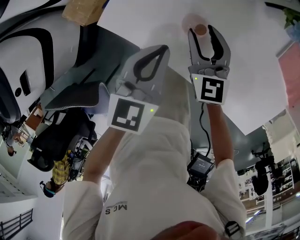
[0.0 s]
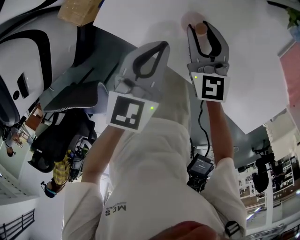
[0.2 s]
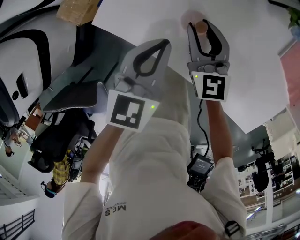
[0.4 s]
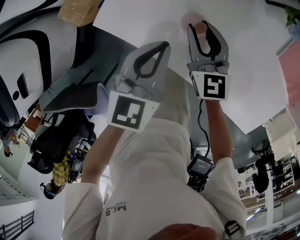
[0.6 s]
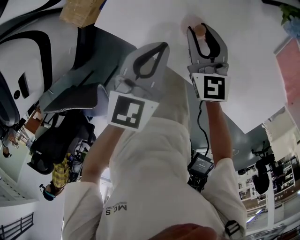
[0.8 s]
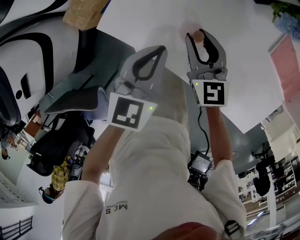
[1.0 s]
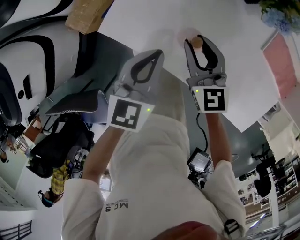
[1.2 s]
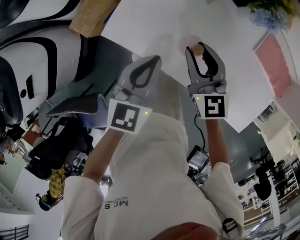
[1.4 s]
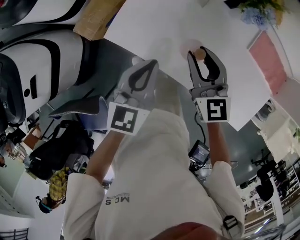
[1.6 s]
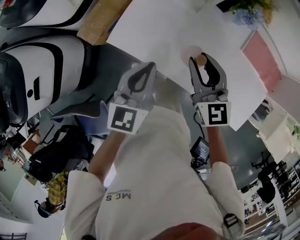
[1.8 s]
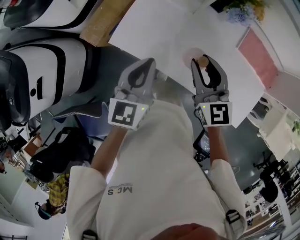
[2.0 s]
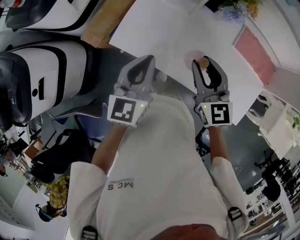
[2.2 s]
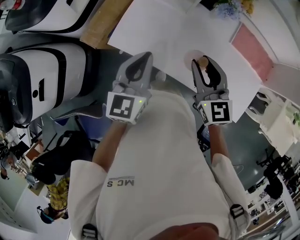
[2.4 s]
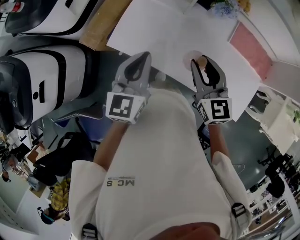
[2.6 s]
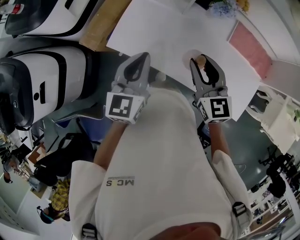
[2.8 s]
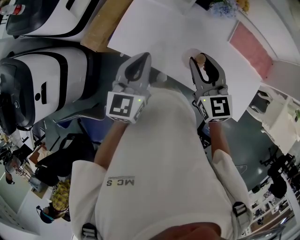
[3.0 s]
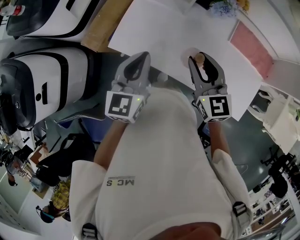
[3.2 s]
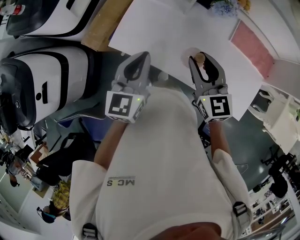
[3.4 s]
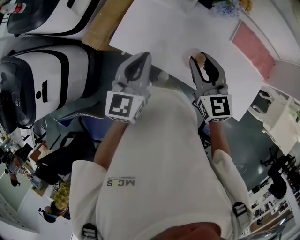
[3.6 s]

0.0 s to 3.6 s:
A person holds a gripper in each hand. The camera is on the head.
0.0 to 1.8 s: Both grippers move upward and backward, some 25 cm.
1.8 to 3.6 s: The right gripper shifts some 10 cm upward and backward. Meanwhile the left gripper heads upward, covering about 5 cm.

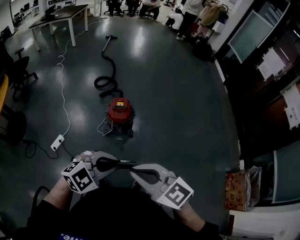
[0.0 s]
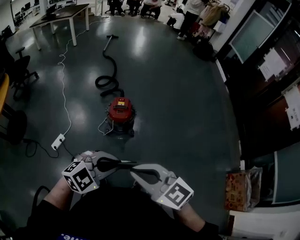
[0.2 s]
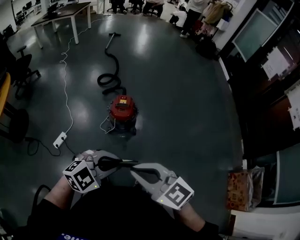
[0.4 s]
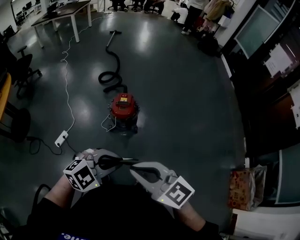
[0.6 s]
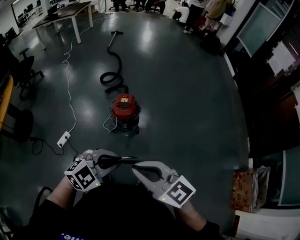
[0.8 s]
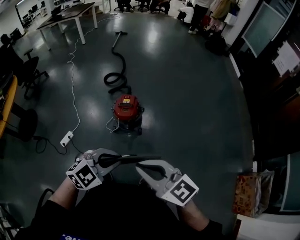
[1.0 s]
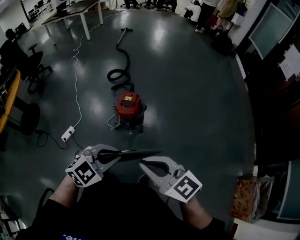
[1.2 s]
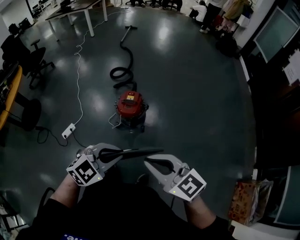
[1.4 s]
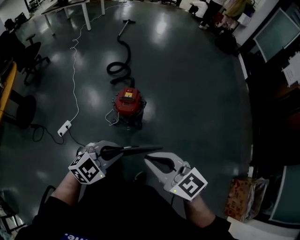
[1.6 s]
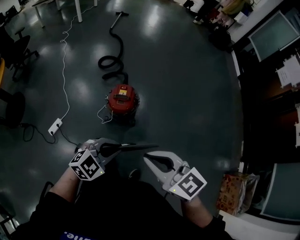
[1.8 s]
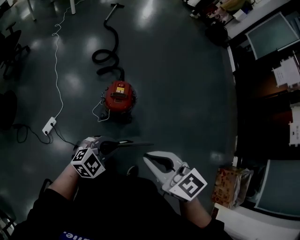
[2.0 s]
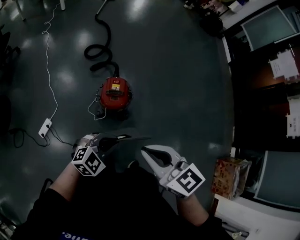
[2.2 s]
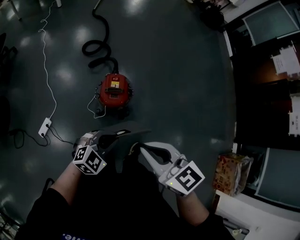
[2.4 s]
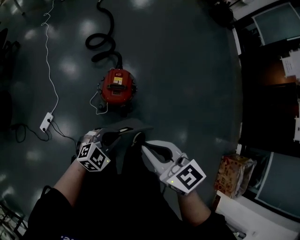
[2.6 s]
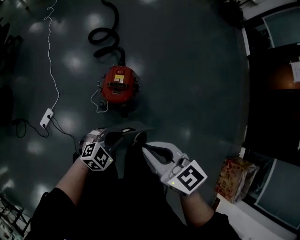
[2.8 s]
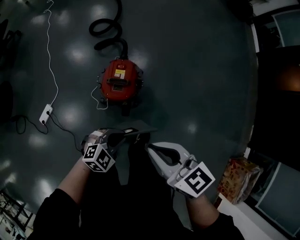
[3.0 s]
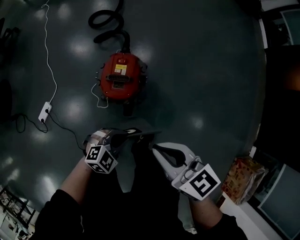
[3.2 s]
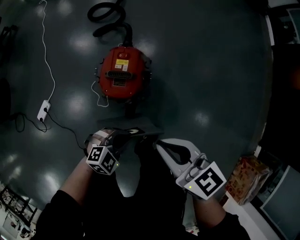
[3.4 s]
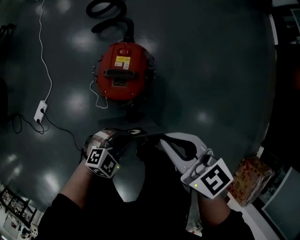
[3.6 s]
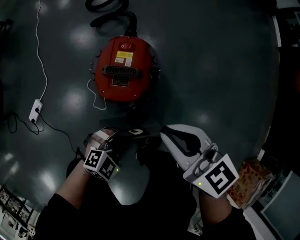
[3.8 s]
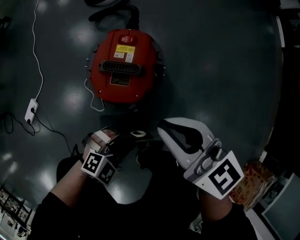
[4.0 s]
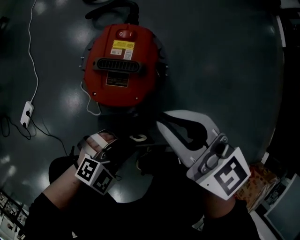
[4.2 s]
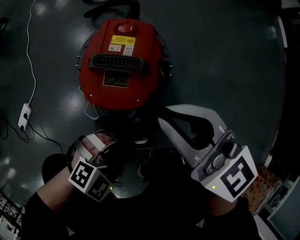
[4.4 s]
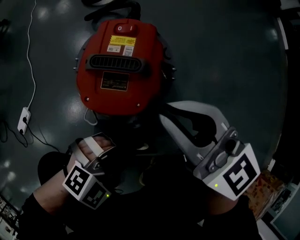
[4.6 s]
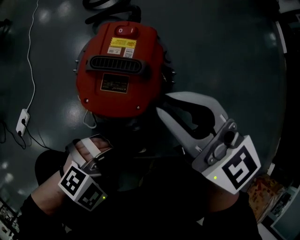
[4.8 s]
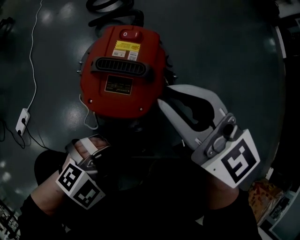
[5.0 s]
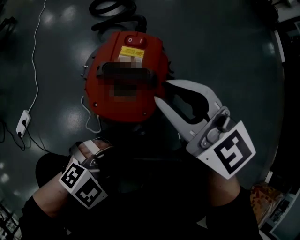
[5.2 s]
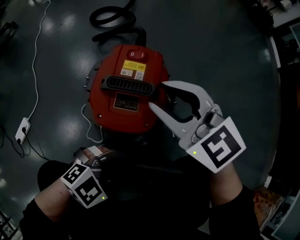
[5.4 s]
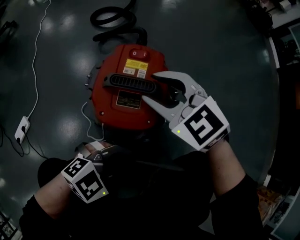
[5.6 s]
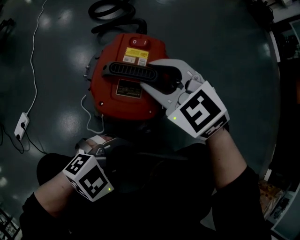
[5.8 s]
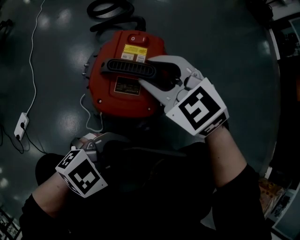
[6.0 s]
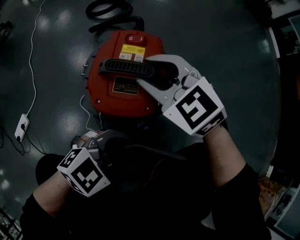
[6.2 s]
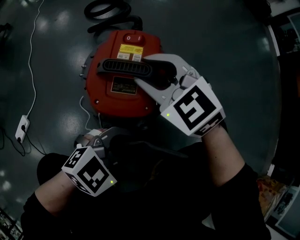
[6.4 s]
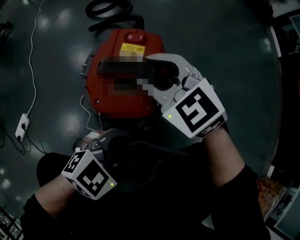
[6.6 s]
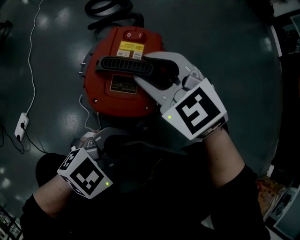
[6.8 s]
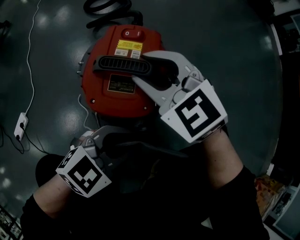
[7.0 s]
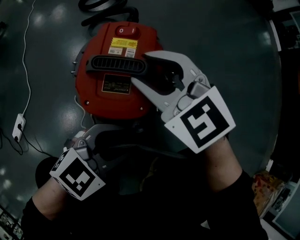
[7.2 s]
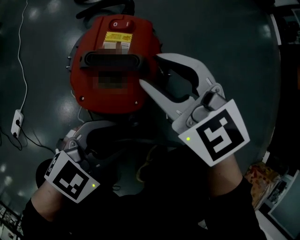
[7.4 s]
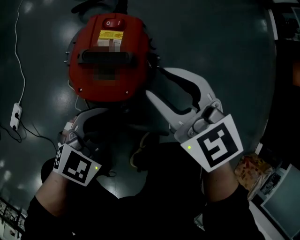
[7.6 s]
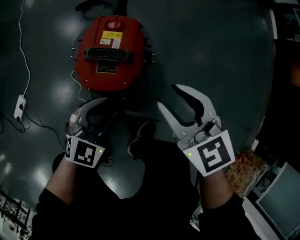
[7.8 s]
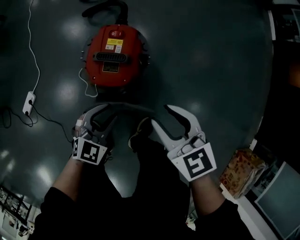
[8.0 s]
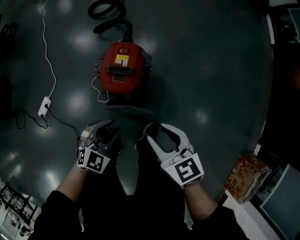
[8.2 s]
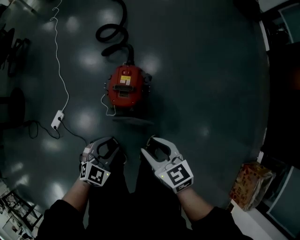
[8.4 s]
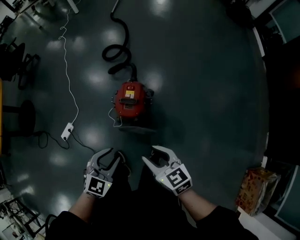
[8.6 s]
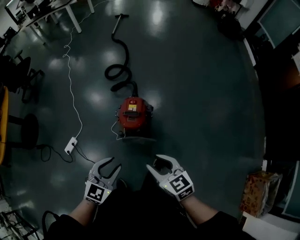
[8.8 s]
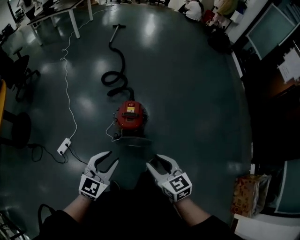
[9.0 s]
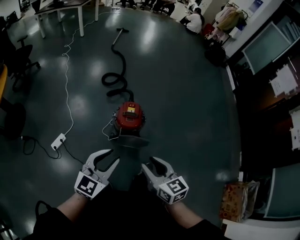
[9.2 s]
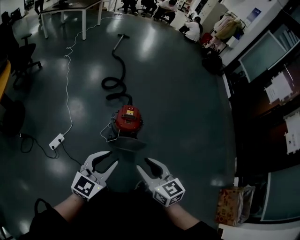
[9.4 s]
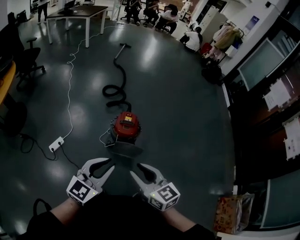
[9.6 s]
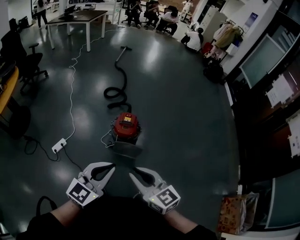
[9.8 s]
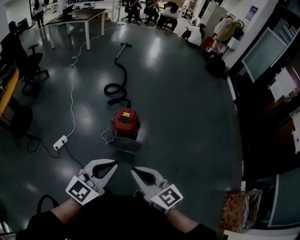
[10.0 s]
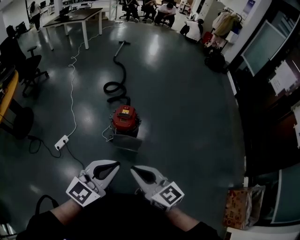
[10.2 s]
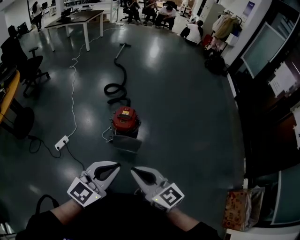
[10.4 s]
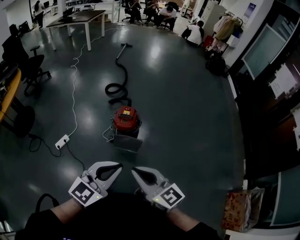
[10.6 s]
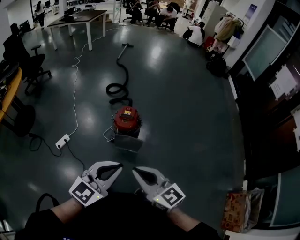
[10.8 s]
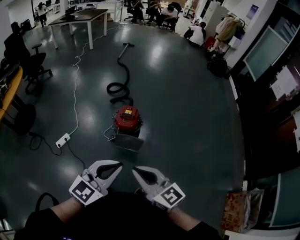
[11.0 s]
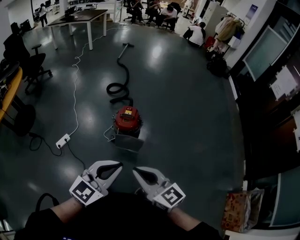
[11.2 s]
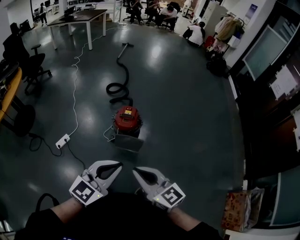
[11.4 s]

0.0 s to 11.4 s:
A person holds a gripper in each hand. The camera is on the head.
0.0 to 1.4 s: The right gripper changes place by roughly 15 cm, while the left gripper changes place by some 10 cm.
1.4 to 2.8 s: The left gripper is displaced downward and forward by about 30 cm. The right gripper moves forward and downward, about 25 cm, and rotates some 20 degrees.
2.8 to 4.2 s: Both grippers move downward, about 30 cm.
4.2 to 5.6 s: The right gripper goes some 15 cm downward, changes its angle by about 40 degrees, and opens.
5.6 to 7.2 s: The left gripper opens its fingers.
7.2 to 8.6 s: The left gripper is displaced upward by approximately 40 cm, and turns by some 30 degrees. Meanwhile the right gripper heads upward and backward, covering roughly 40 cm, and rotates around the line of its fingers by some 40 degrees, clockwise from behind.
8.6 to 10.0 s: The right gripper heads backward and upward, covering roughly 30 cm, swivels approximately 20 degrees, and closes; the left gripper moves upward and backward, some 35 cm, rotates some 30 degrees, and closes its fingers.
10.0 to 11.4 s: The grippers move only a little.

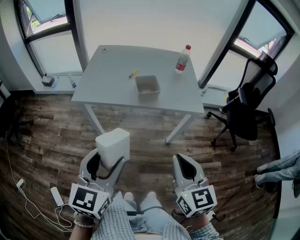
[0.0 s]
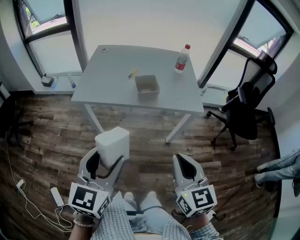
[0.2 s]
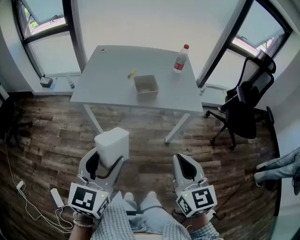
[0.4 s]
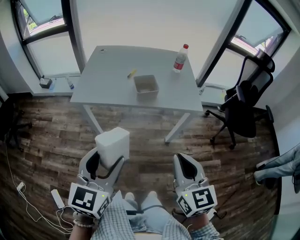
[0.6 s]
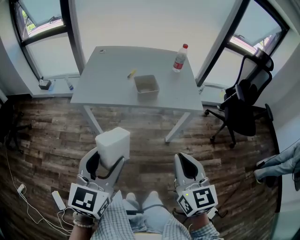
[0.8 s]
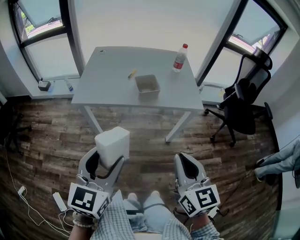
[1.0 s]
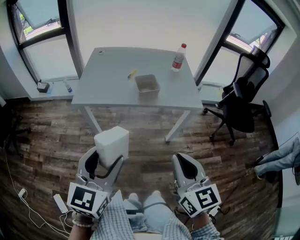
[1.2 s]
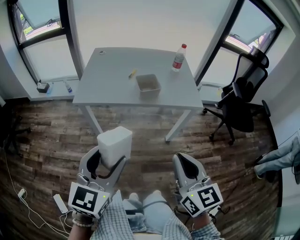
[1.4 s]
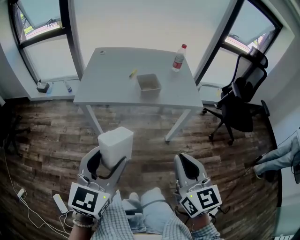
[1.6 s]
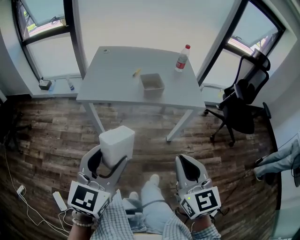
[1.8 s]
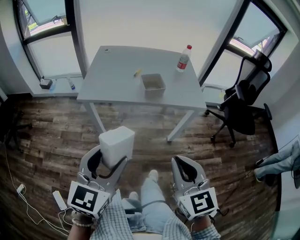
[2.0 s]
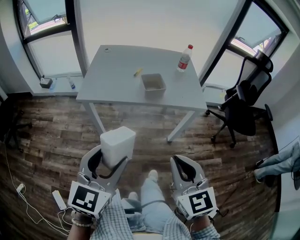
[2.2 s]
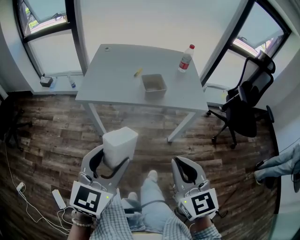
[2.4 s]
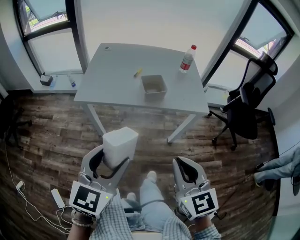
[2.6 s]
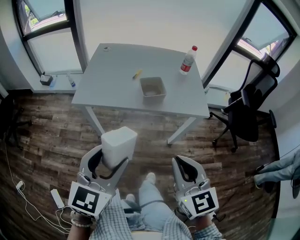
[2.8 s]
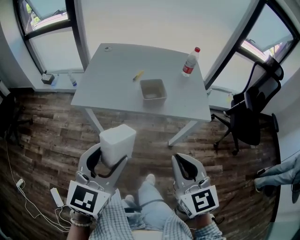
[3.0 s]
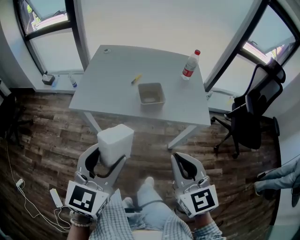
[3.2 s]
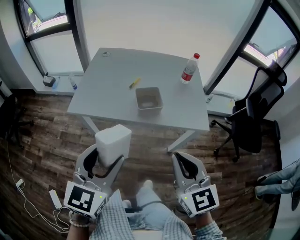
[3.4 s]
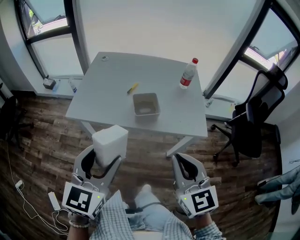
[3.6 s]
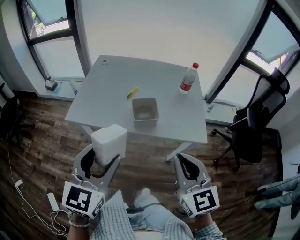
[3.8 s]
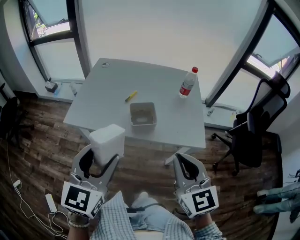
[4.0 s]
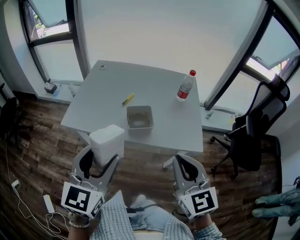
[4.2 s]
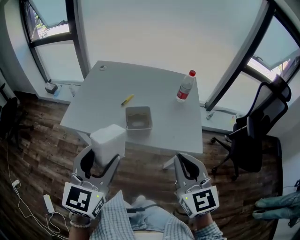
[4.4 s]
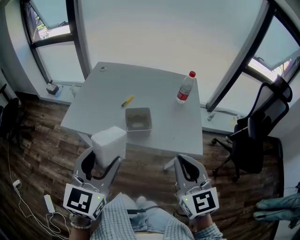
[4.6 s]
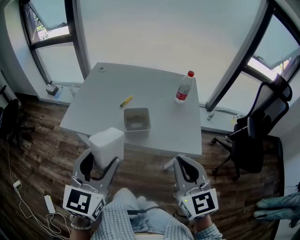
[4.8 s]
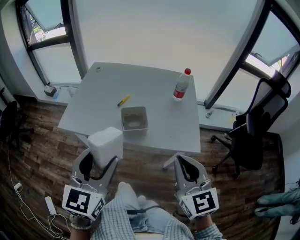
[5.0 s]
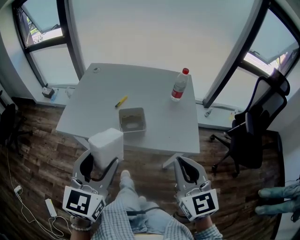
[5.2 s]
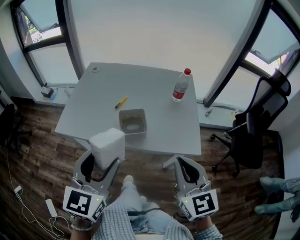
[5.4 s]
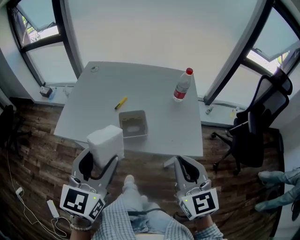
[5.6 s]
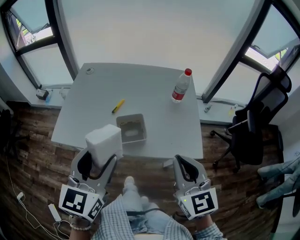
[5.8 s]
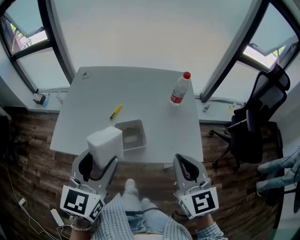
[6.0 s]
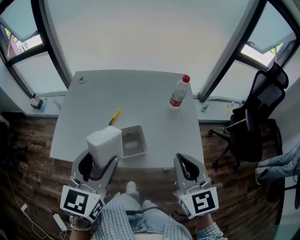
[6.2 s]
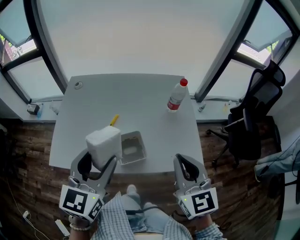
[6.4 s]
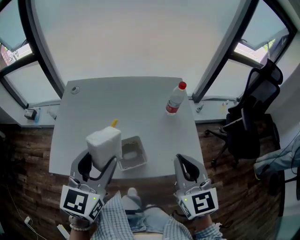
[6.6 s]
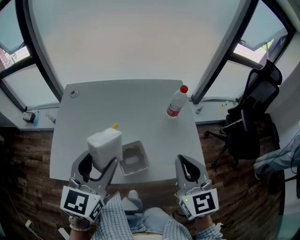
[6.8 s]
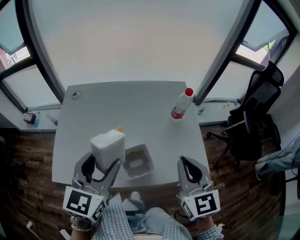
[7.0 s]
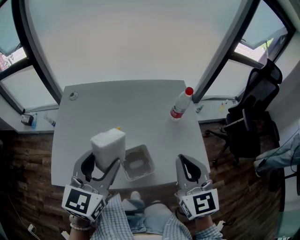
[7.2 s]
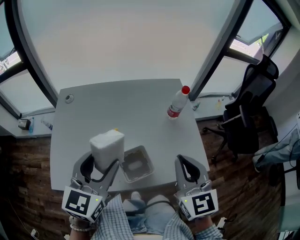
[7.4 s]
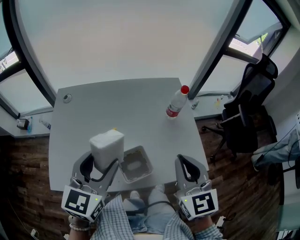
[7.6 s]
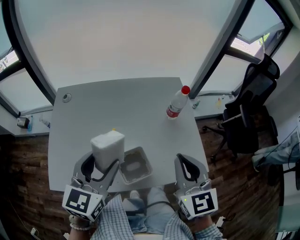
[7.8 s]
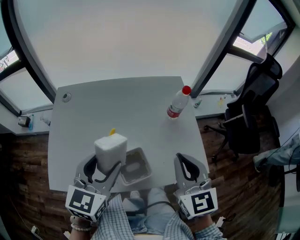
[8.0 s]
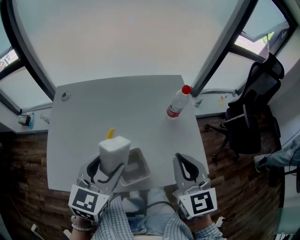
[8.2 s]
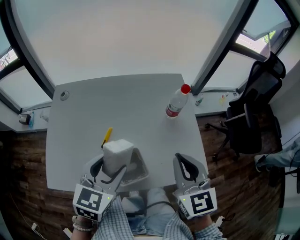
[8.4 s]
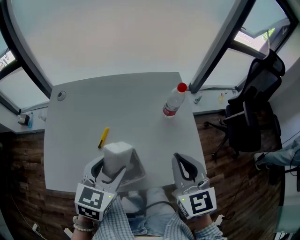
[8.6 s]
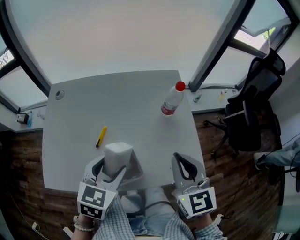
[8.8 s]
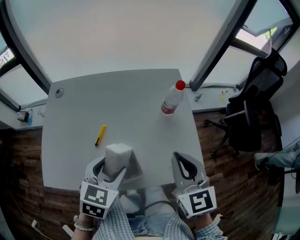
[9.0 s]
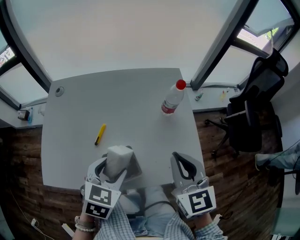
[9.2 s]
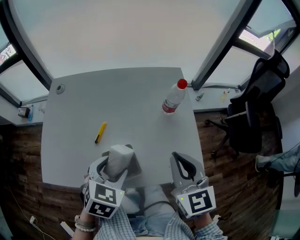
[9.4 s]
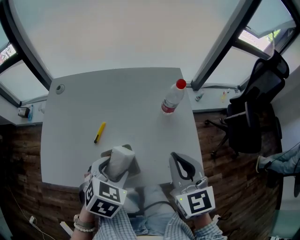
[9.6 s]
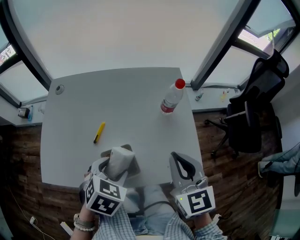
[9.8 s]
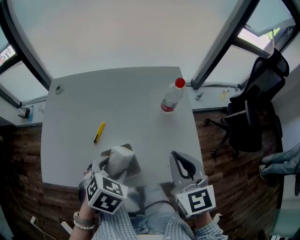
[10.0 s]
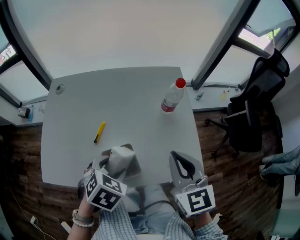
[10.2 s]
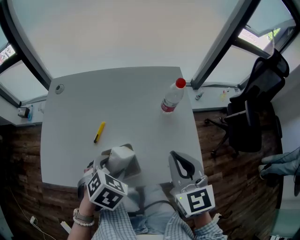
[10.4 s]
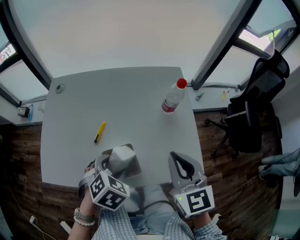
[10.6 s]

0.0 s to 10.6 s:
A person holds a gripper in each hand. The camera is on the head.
0.0 to 1.6 s: The right gripper moves approximately 5 cm.
1.6 to 3.0 s: Both grippers travel together forward, roughly 10 cm.
3.0 to 4.6 s: Both grippers travel together forward and to the right, some 15 cm.
4.6 to 6.0 s: Both grippers move forward, approximately 10 cm.
6.0 to 7.6 s: The two grippers go roughly 10 cm forward.
7.6 to 9.0 s: The right gripper moves approximately 5 cm, while the left gripper goes about 15 cm downward and to the right, and turns by some 30 degrees.
9.0 to 10.6 s: The left gripper heads downward, covering roughly 5 cm, and turns by approximately 30 degrees.
